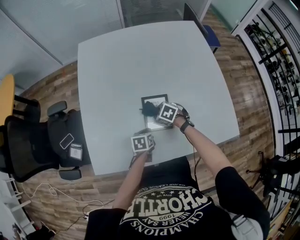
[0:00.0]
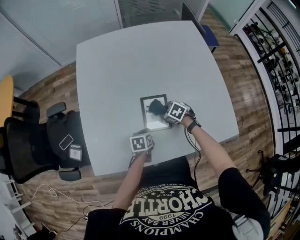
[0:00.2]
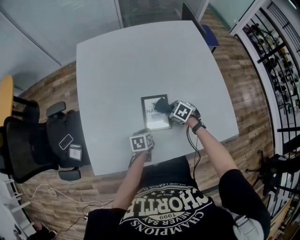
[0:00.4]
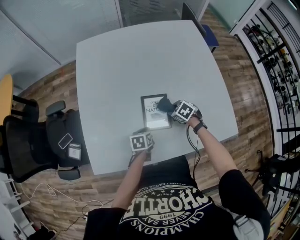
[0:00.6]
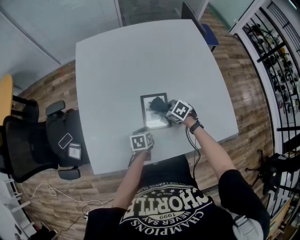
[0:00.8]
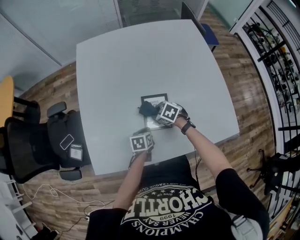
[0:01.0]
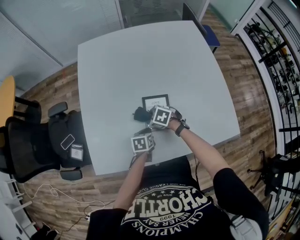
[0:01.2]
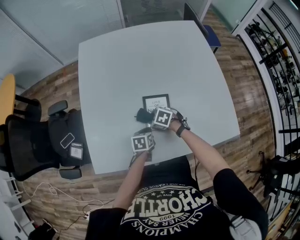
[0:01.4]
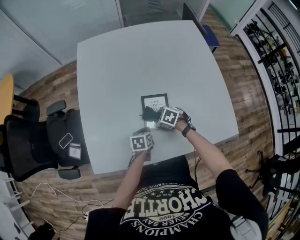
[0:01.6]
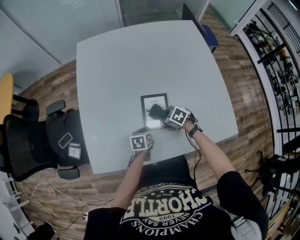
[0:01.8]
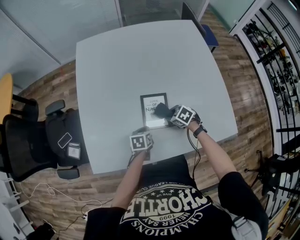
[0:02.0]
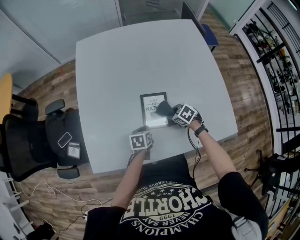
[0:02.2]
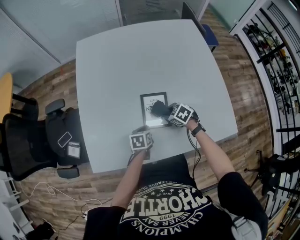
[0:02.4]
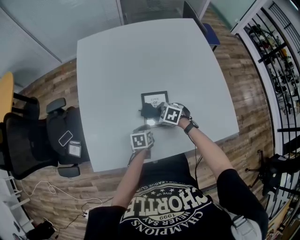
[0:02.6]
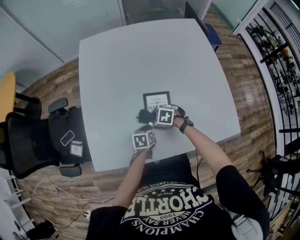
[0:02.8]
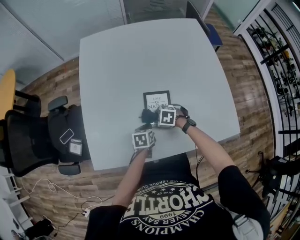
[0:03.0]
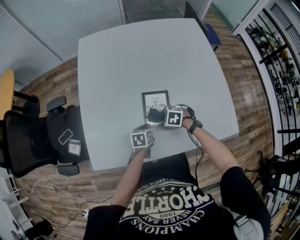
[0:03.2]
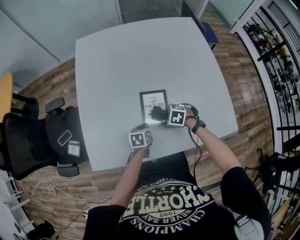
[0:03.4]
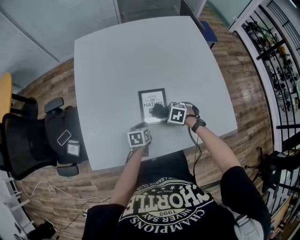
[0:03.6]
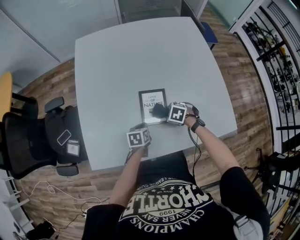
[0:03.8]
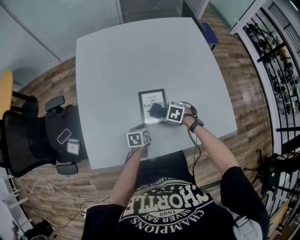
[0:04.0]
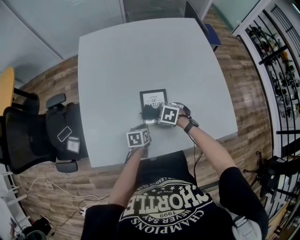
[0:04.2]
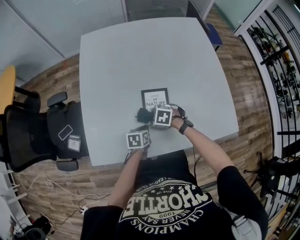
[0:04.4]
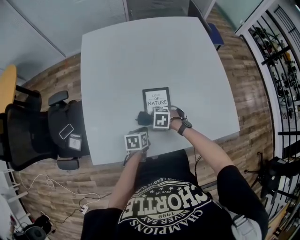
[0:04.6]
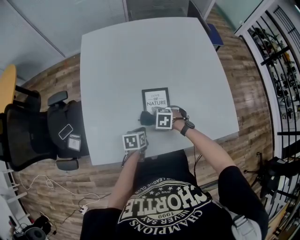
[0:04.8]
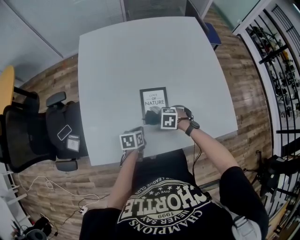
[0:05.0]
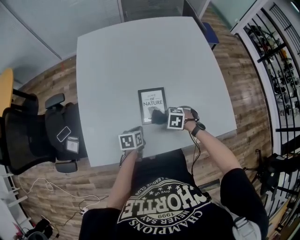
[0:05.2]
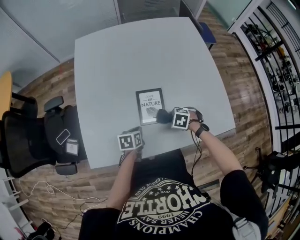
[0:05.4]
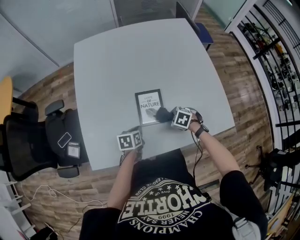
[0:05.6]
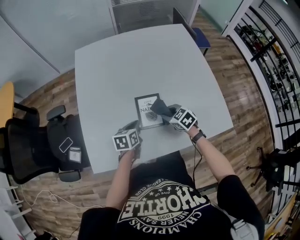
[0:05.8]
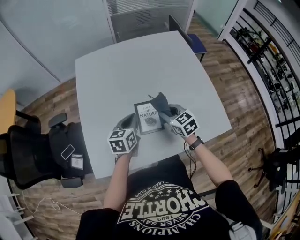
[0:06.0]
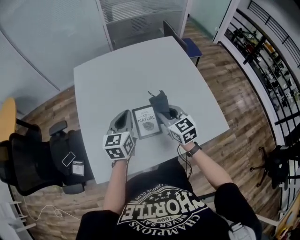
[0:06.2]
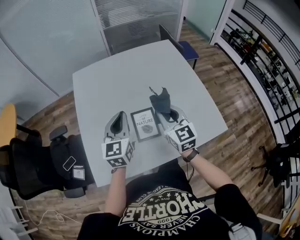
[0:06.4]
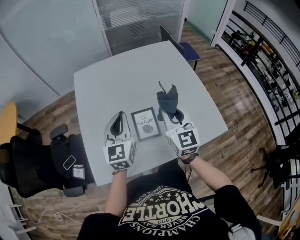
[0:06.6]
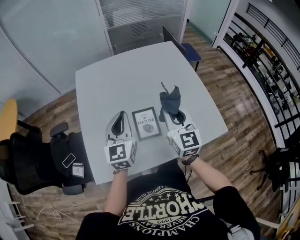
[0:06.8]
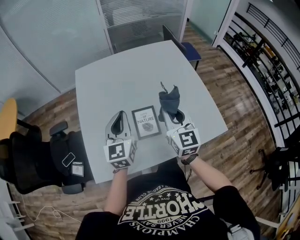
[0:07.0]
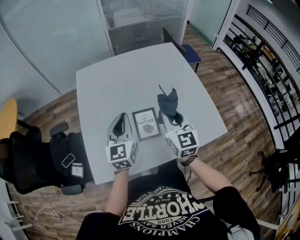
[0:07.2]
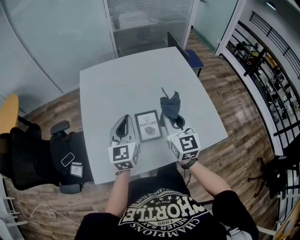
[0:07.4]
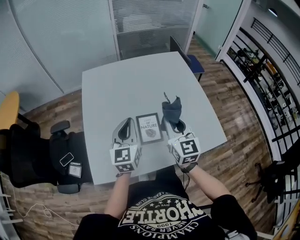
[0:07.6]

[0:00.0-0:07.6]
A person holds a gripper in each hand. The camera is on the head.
0:03.0 to 0:04.6: The left gripper moves approximately 5 cm.
0:04.6 to 0:06.0: Both grippers travel together upward, roughly 20 cm. The left gripper swivels approximately 30 degrees; the right gripper tips its fingers upward by some 40 degrees.
0:06.0 to 0:07.6: The grippers both shift upward by roughly 15 cm. The right gripper swivels approximately 40 degrees. The left gripper changes its angle by some 30 degrees.

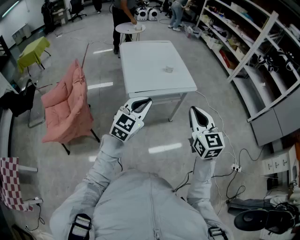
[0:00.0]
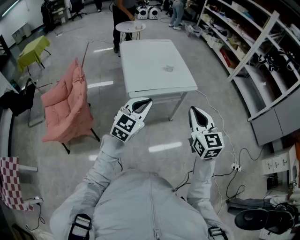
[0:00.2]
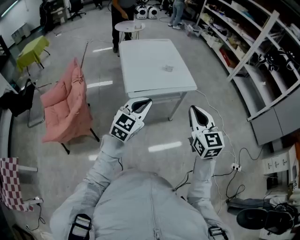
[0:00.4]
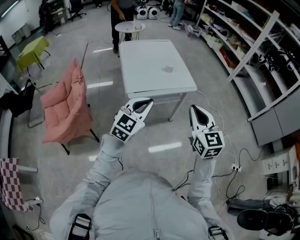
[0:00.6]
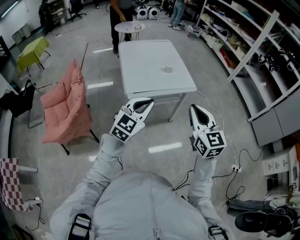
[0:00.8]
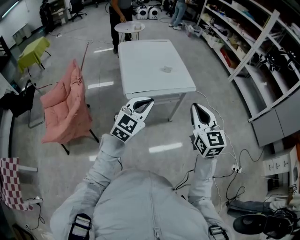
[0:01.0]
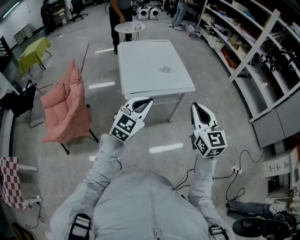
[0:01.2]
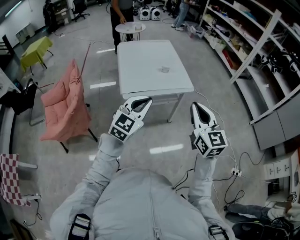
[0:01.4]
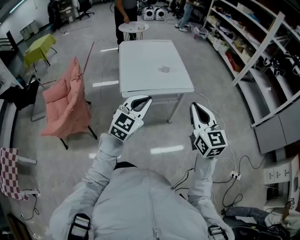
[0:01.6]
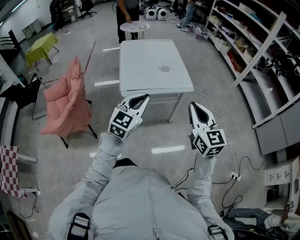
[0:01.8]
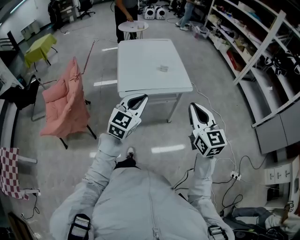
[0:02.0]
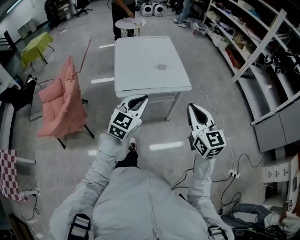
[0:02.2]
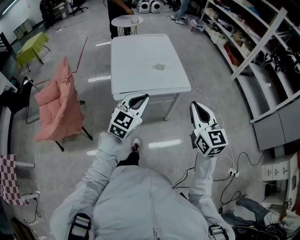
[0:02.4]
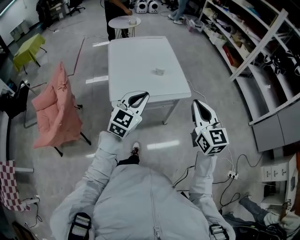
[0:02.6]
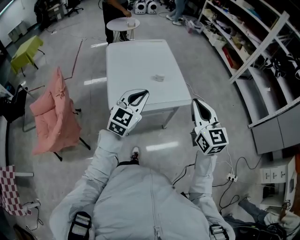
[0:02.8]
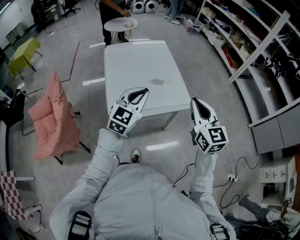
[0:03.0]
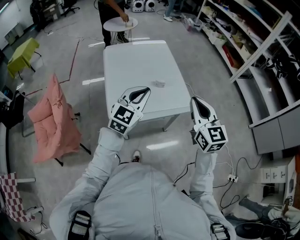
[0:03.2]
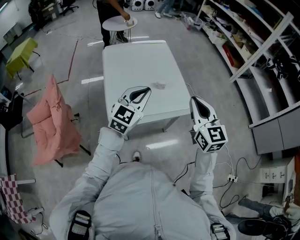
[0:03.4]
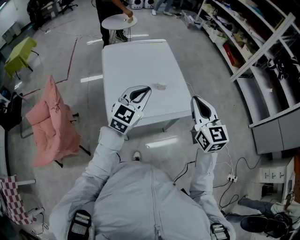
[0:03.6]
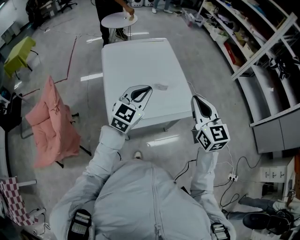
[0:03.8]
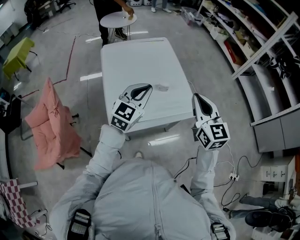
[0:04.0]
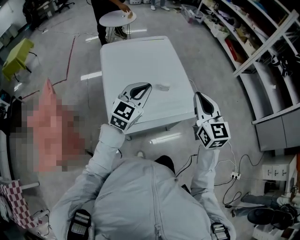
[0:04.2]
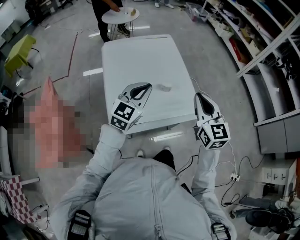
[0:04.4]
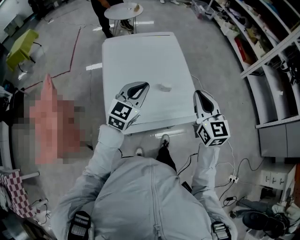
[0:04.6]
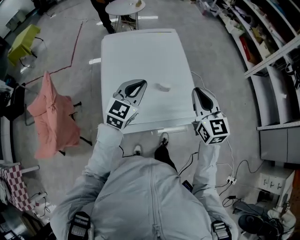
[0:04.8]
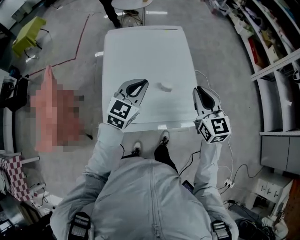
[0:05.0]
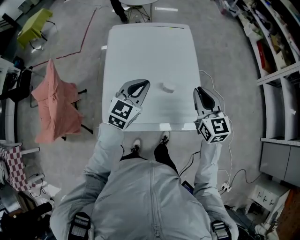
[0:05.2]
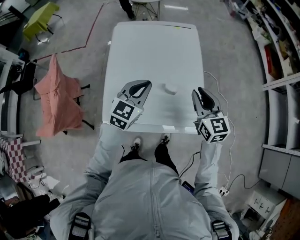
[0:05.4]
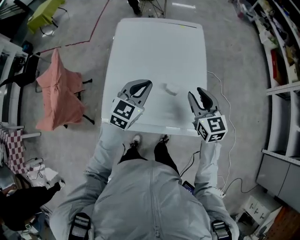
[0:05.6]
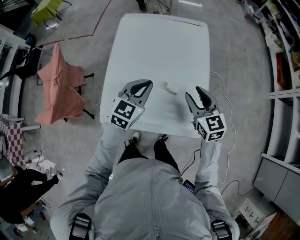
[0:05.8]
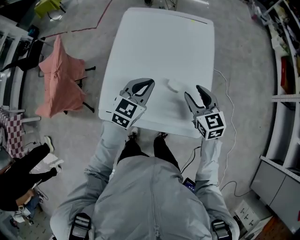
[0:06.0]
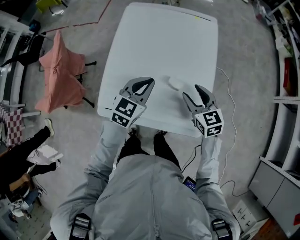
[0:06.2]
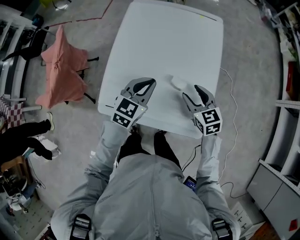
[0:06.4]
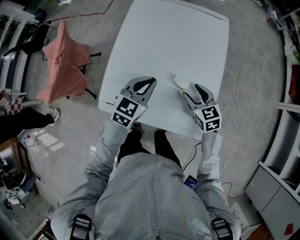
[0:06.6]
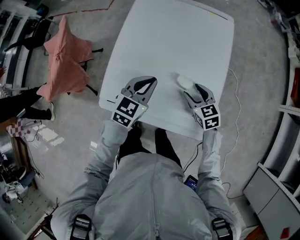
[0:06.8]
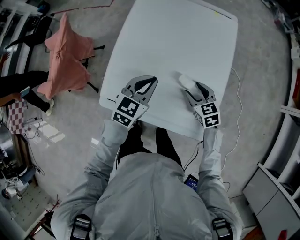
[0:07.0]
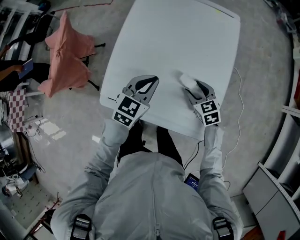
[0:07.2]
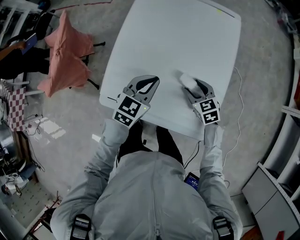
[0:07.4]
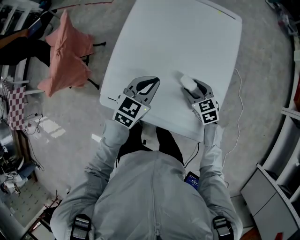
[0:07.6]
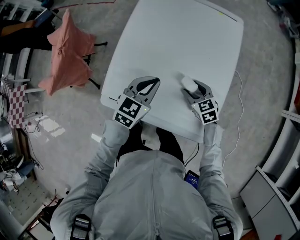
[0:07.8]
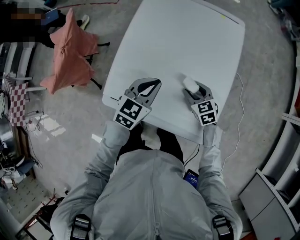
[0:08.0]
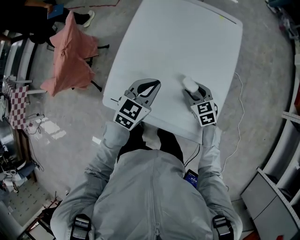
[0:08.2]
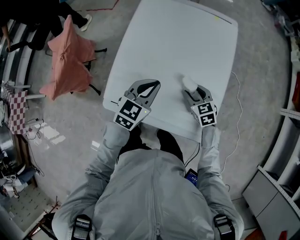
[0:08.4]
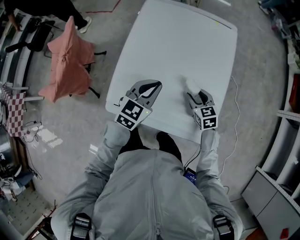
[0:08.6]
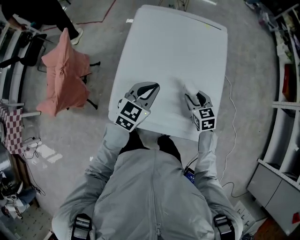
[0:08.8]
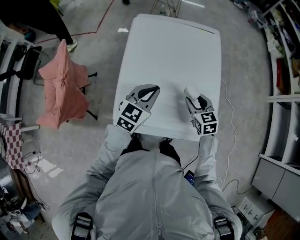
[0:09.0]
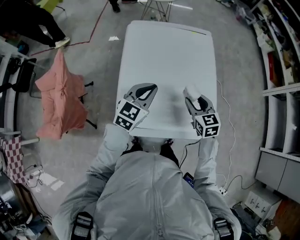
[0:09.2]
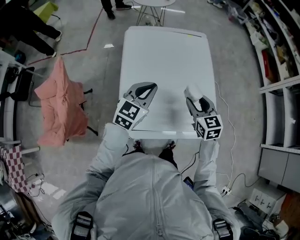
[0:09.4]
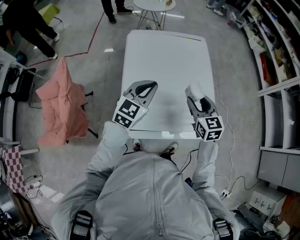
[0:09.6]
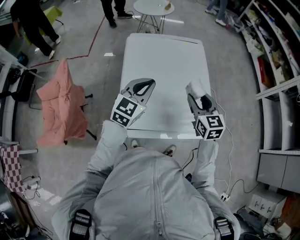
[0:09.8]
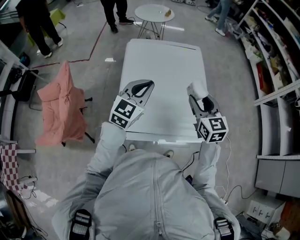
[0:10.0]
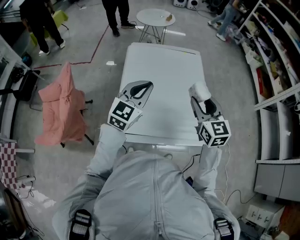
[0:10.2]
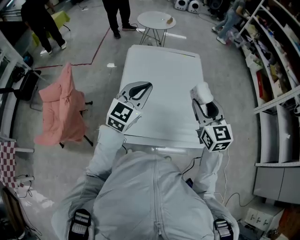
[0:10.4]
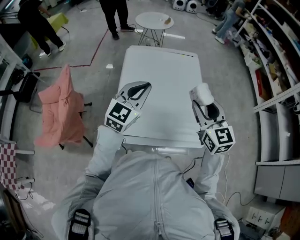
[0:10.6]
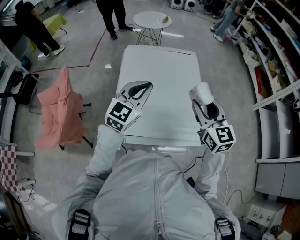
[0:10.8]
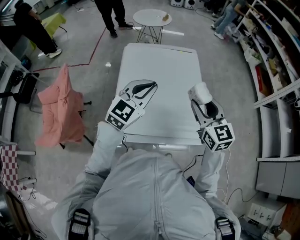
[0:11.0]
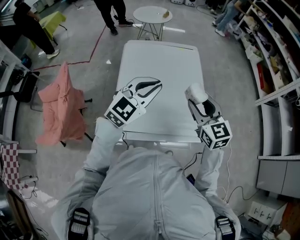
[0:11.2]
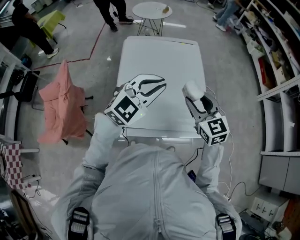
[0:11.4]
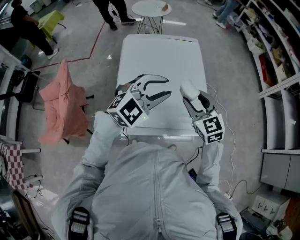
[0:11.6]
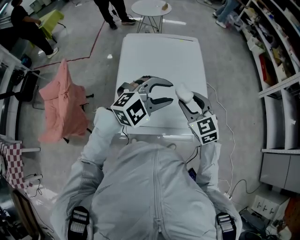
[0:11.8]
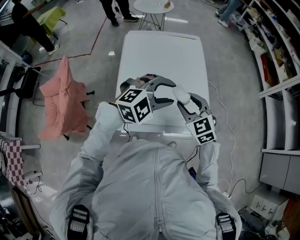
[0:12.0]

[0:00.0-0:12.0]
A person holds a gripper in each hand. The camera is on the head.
0:00.0 to 0:01.6: The left gripper is displaced to the right by about 10 cm. Meanwhile the right gripper moves to the right and forward, approximately 10 cm.
0:01.6 to 0:03.0: Both grippers travel together forward, roughly 25 cm.
0:03.0 to 0:04.4: Both grippers travel together forward, approximately 15 cm.
0:04.4 to 0:06.0: The left gripper changes place by approximately 20 cm, and changes its angle by about 30 degrees, while the right gripper shifts by some 25 cm, swivels roughly 40 degrees, and opens up.
0:06.0 to 0:07.6: The right gripper shifts roughly 15 cm downward, and rotates approximately 20 degrees. The left gripper travels downward by roughly 5 cm.
0:07.6 to 0:09.0: The grippers both shift upward and to the left by approximately 10 cm. The right gripper rotates about 20 degrees.
0:09.0 to 0:10.4: The right gripper is displaced upward by approximately 25 cm, and turns by roughly 30 degrees. Meanwhile the left gripper goes about 15 cm upward.
0:10.4 to 0:12.0: The left gripper travels to the right and downward by roughly 15 cm, rotates roughly 50 degrees, and opens its fingers. Meanwhile the right gripper heads downward, covering approximately 10 cm, and turns by about 20 degrees.

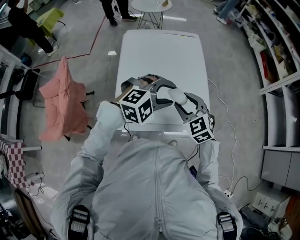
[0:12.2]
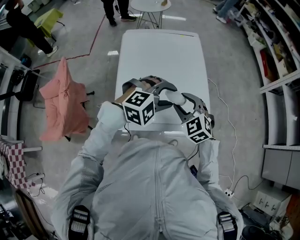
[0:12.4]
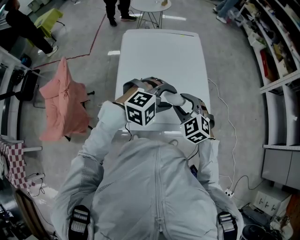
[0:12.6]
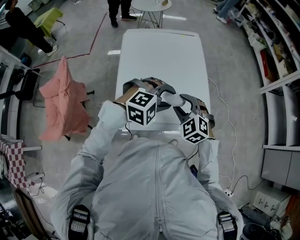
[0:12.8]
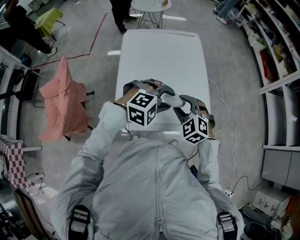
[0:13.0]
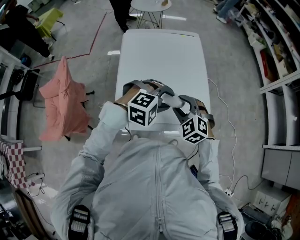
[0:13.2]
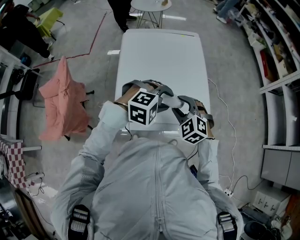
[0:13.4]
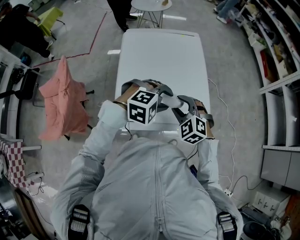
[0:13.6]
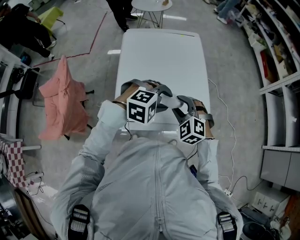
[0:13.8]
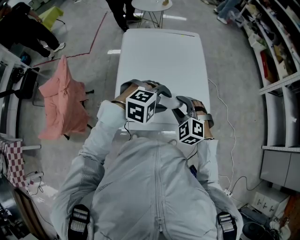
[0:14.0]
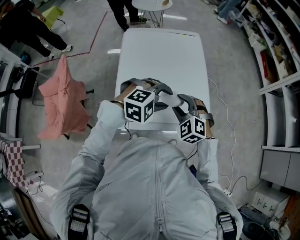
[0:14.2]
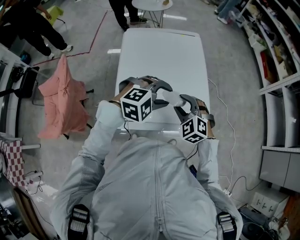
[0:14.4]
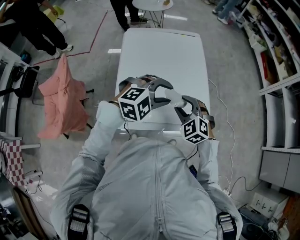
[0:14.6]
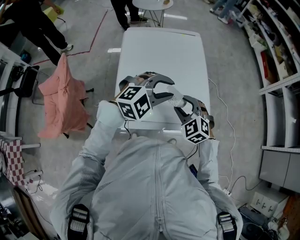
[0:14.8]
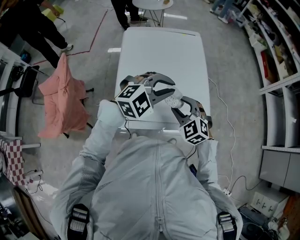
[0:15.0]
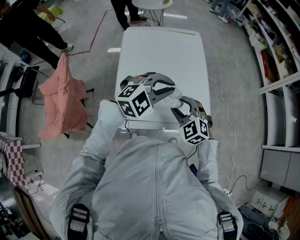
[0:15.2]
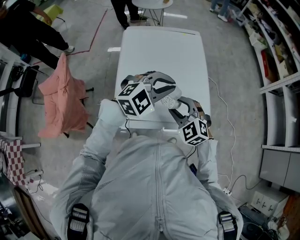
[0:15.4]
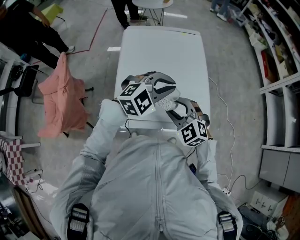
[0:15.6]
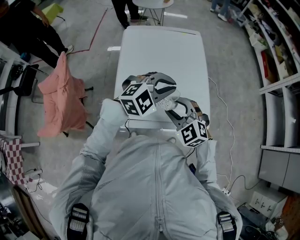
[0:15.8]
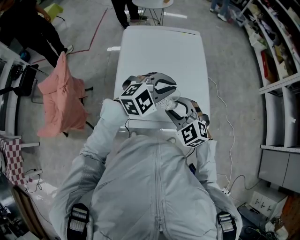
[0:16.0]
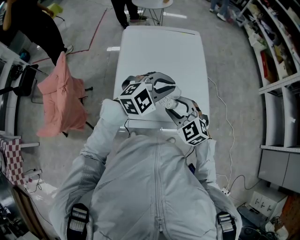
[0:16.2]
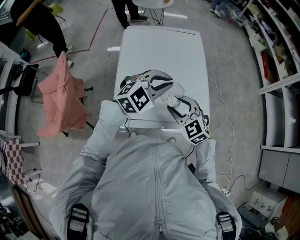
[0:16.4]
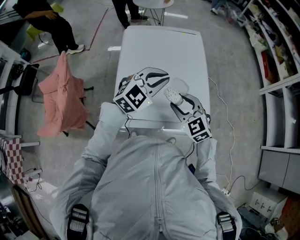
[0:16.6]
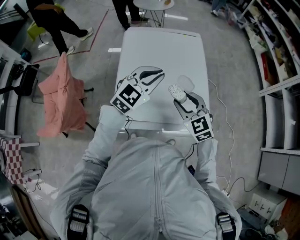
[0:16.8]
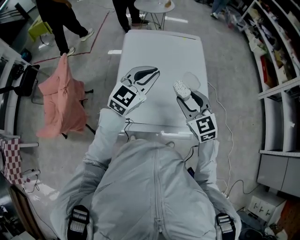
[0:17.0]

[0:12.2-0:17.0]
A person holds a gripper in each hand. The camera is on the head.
0:12.2 to 0:13.8: The left gripper ends up some 5 cm from where it was. The right gripper turns by about 20 degrees.
0:13.8 to 0:15.4: The left gripper heads upward, covering roughly 5 cm, changes its angle by approximately 30 degrees, and closes up.
0:15.4 to 0:17.0: The left gripper travels to the left by some 10 cm, and turns by approximately 40 degrees, while the right gripper goes about 5 cm upward, and swivels roughly 20 degrees.
